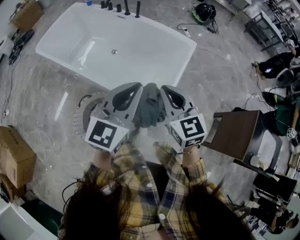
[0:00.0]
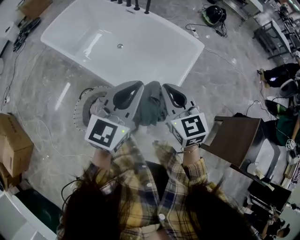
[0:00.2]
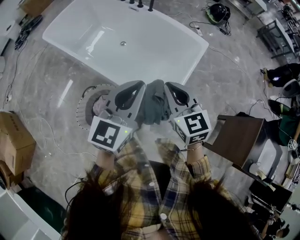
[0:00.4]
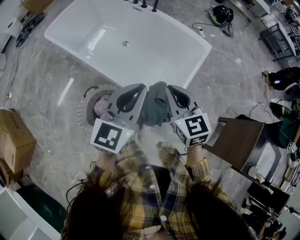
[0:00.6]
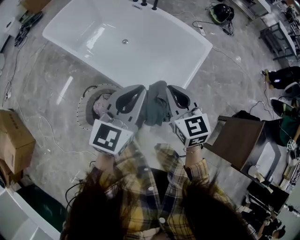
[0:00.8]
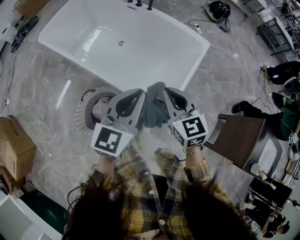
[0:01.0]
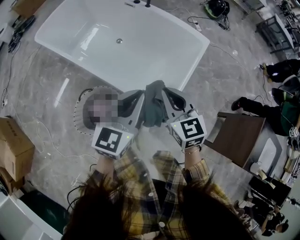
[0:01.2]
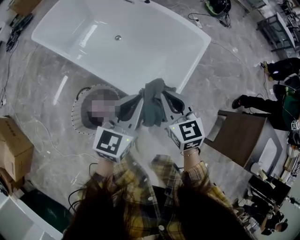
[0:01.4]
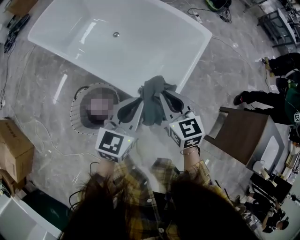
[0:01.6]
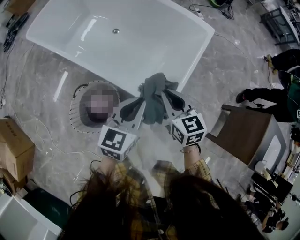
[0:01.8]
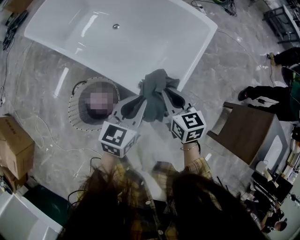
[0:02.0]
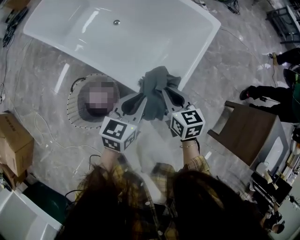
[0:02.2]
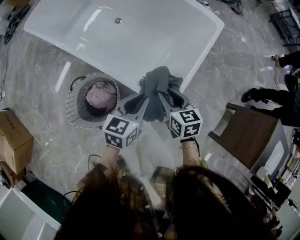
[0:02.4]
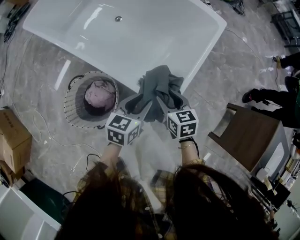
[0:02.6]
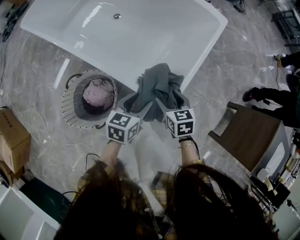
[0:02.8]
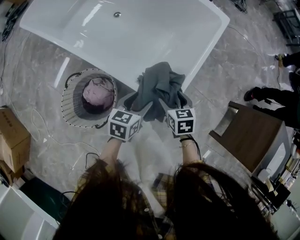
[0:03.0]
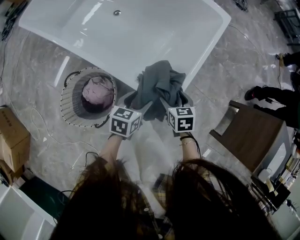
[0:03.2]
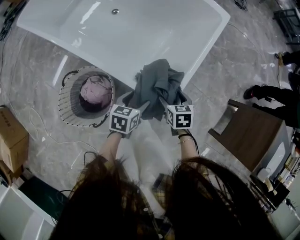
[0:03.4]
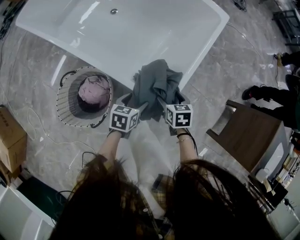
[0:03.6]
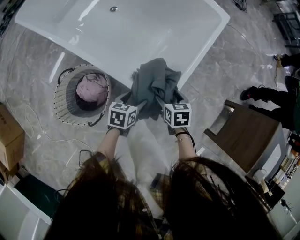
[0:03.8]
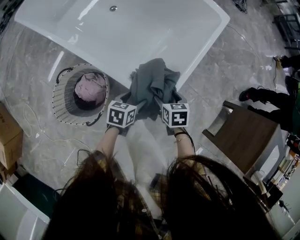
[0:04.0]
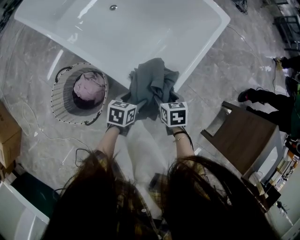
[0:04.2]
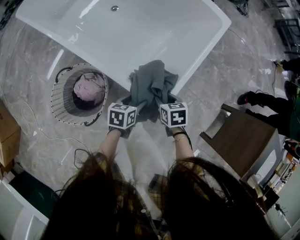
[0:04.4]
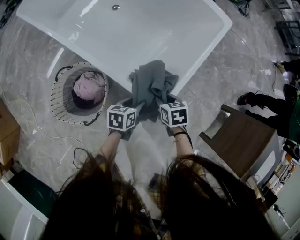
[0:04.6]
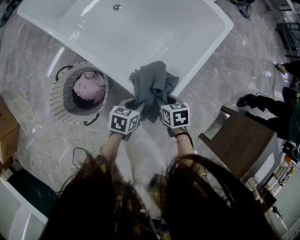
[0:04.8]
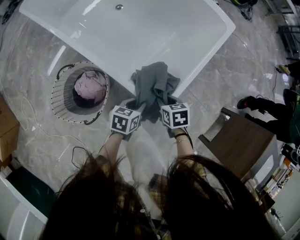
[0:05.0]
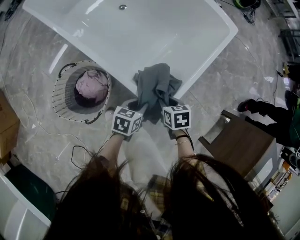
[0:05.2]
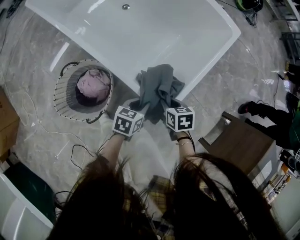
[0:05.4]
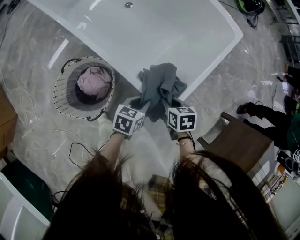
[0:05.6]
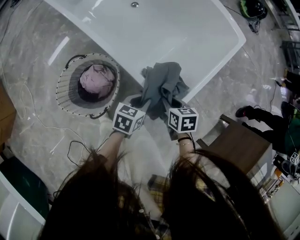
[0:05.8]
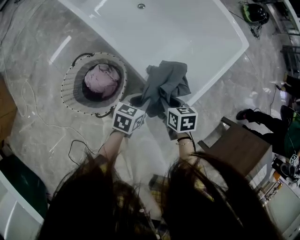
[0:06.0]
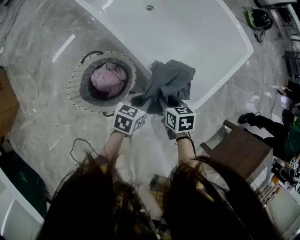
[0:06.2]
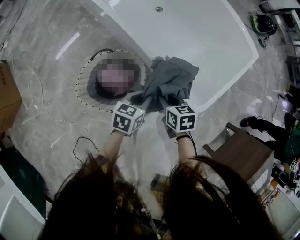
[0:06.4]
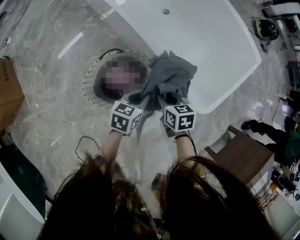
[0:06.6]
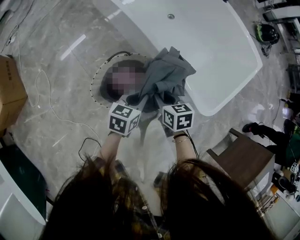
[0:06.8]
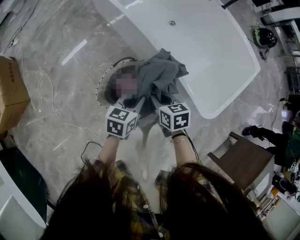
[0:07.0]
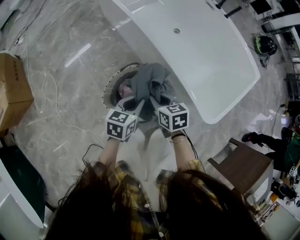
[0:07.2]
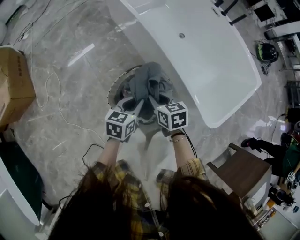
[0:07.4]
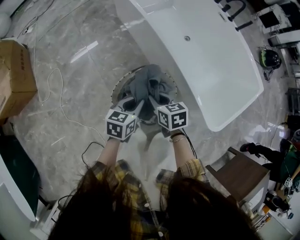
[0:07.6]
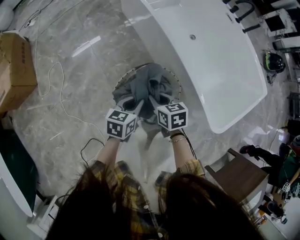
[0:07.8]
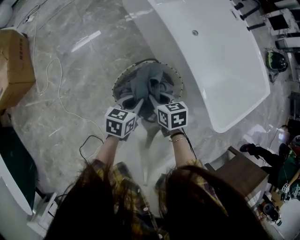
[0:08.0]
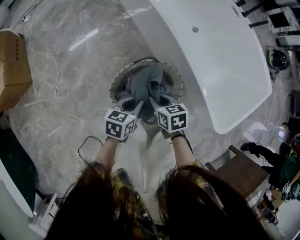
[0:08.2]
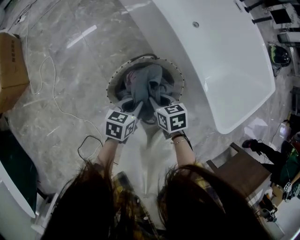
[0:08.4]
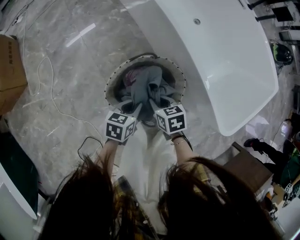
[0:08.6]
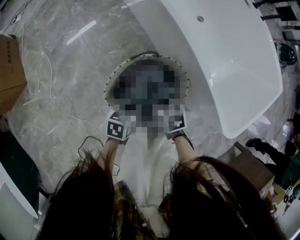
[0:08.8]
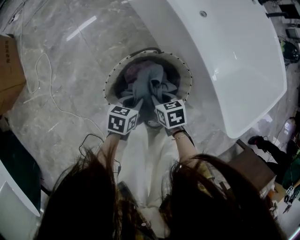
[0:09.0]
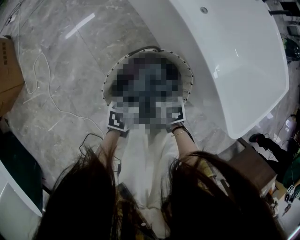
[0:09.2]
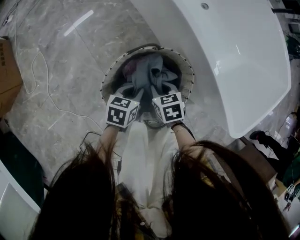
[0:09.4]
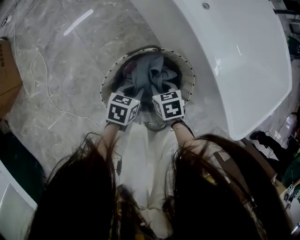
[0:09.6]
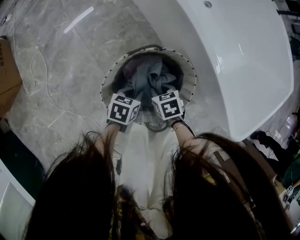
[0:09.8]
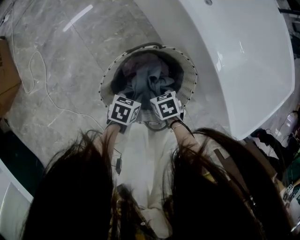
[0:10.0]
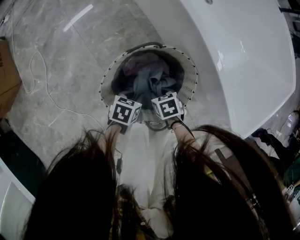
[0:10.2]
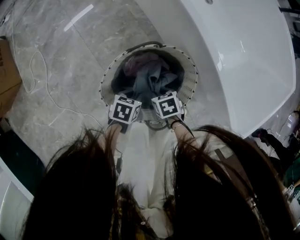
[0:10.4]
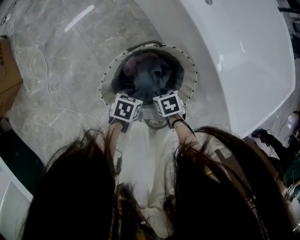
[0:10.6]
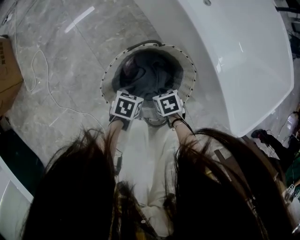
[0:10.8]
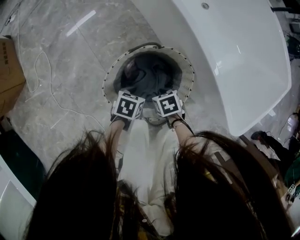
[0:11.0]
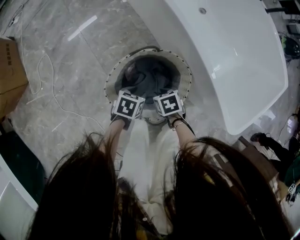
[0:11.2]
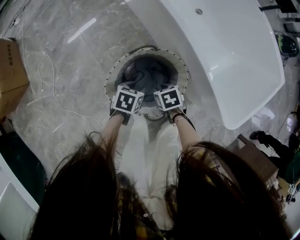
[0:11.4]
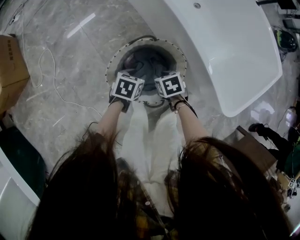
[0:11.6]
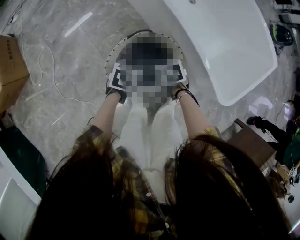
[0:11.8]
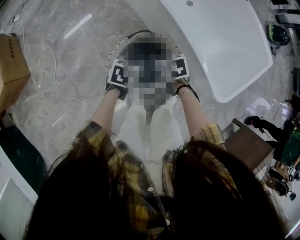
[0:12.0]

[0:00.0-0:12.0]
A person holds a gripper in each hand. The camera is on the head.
0:00.0 to 0:01.6: Both grippers move downward, roughly 15 cm.
0:01.6 to 0:03.0: Both grippers move downward, approximately 25 cm. The left gripper rotates roughly 30 degrees, and opens; the right gripper turns by approximately 30 degrees, and opens its fingers.
0:03.0 to 0:04.4: The left gripper heads downward, covering approximately 10 cm. Meanwhile the right gripper shifts approximately 5 cm downward, and closes.
0:04.4 to 0:06.0: The left gripper shifts some 10 cm to the left and upward, and closes up. The right gripper moves to the left, about 10 cm.
0:06.0 to 0:07.6: Both grippers move to the left, roughly 35 cm. The right gripper changes its angle by some 20 degrees. The left gripper swivels some 20 degrees.
0:07.6 to 0:09.0: The grippers both shift downward by some 20 cm.
0:09.0 to 0:10.4: Both grippers travel together downward, roughly 10 cm.
0:10.4 to 0:12.0: The grippers both shift upward by approximately 20 cm.

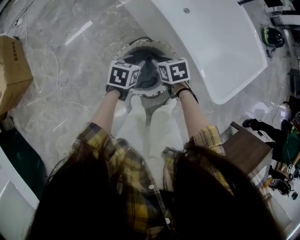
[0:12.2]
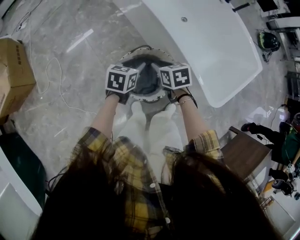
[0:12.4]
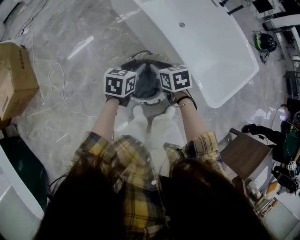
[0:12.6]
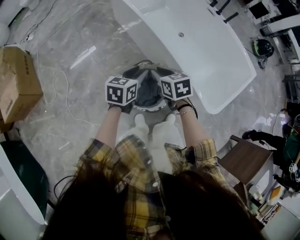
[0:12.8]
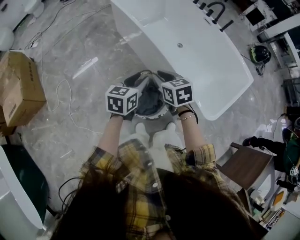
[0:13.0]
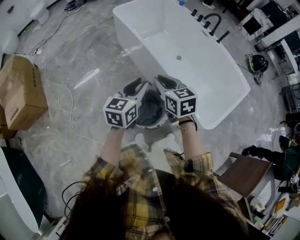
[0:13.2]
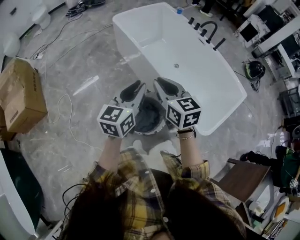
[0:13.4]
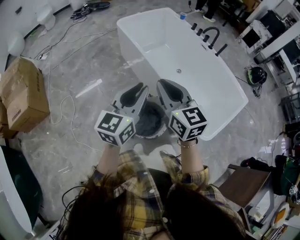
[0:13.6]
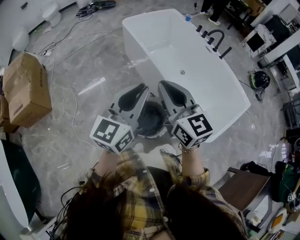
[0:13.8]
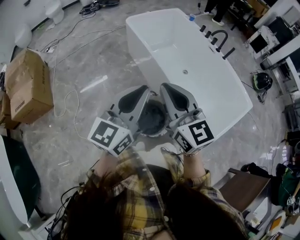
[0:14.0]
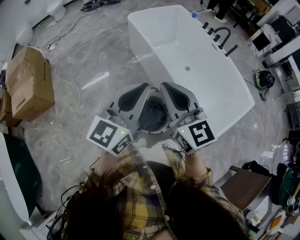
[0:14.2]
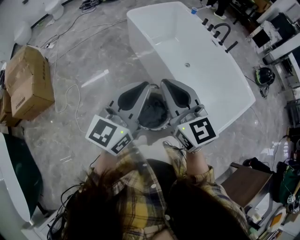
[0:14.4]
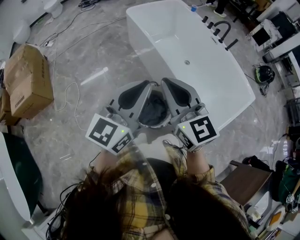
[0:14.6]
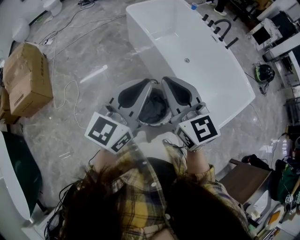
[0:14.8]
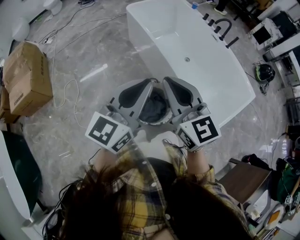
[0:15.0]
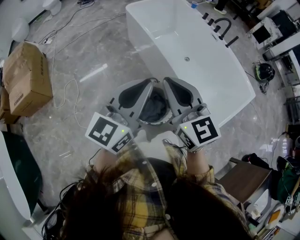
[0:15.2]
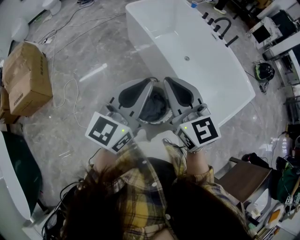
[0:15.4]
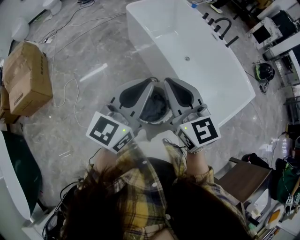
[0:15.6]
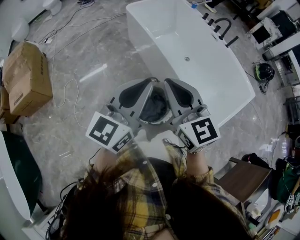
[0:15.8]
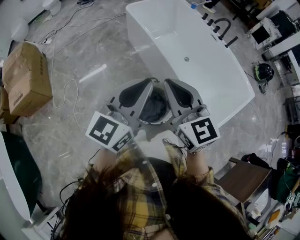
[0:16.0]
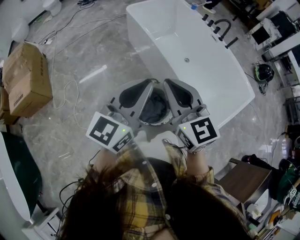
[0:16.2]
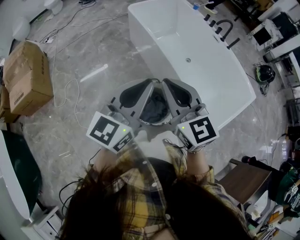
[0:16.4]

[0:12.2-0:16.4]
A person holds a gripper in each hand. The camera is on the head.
0:12.2 to 0:13.6: The two grippers go about 40 cm upward. The right gripper angles its fingers upward, by approximately 50 degrees. Meanwhile the left gripper tips its fingers upward by roughly 50 degrees.
0:13.6 to 0:15.0: The grippers both shift backward by about 5 cm.
0:15.0 to 0:16.4: The grippers move only a little.

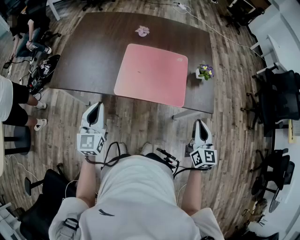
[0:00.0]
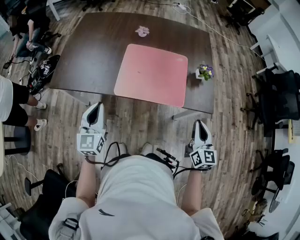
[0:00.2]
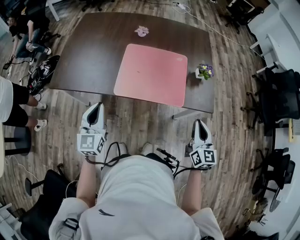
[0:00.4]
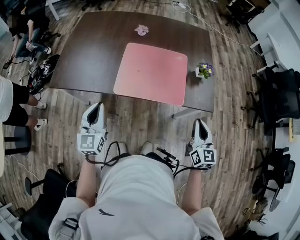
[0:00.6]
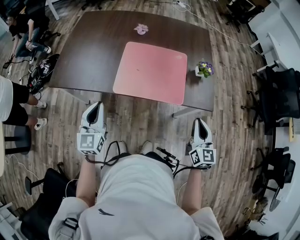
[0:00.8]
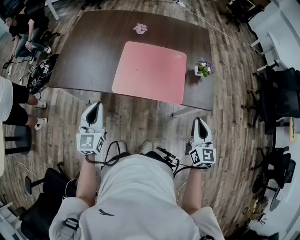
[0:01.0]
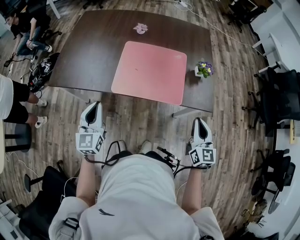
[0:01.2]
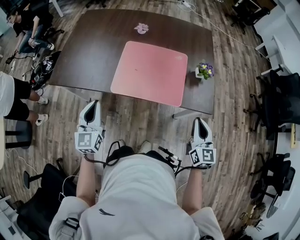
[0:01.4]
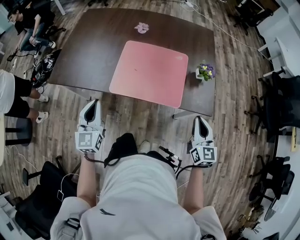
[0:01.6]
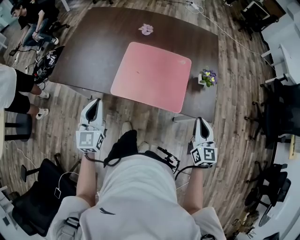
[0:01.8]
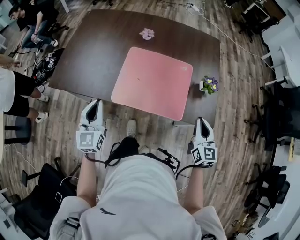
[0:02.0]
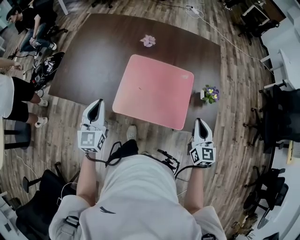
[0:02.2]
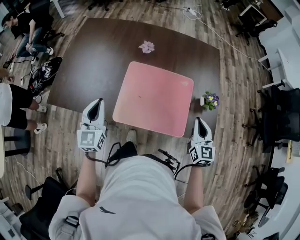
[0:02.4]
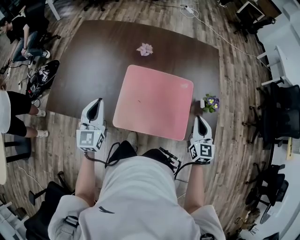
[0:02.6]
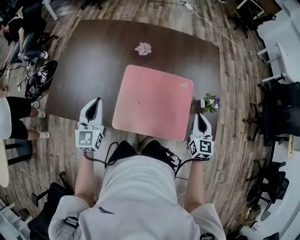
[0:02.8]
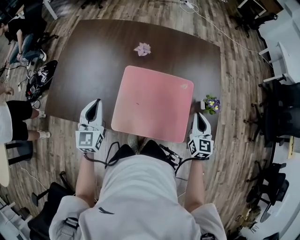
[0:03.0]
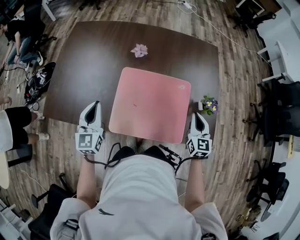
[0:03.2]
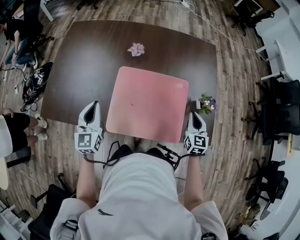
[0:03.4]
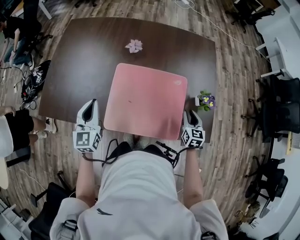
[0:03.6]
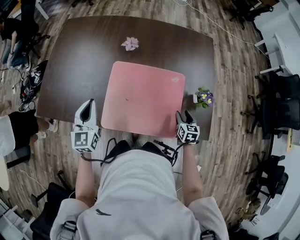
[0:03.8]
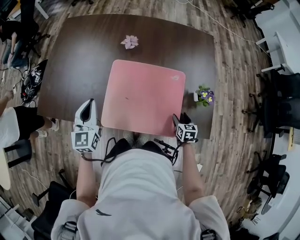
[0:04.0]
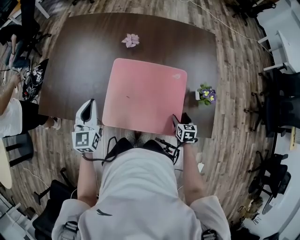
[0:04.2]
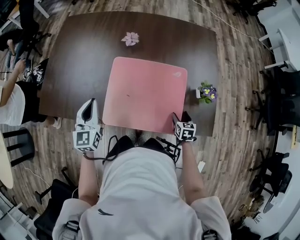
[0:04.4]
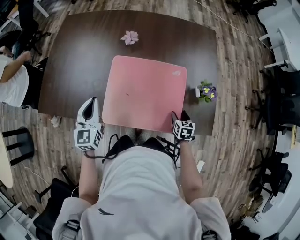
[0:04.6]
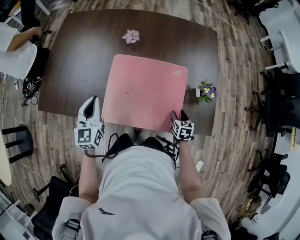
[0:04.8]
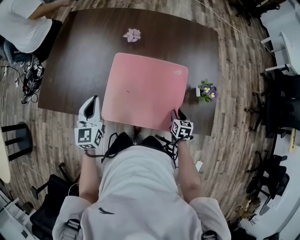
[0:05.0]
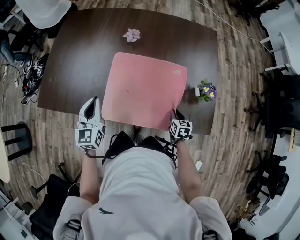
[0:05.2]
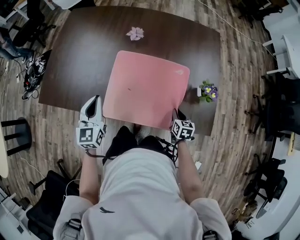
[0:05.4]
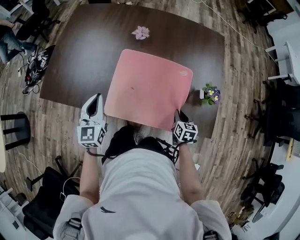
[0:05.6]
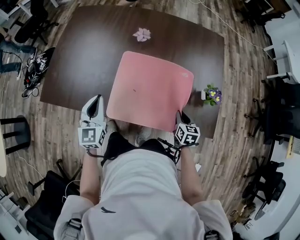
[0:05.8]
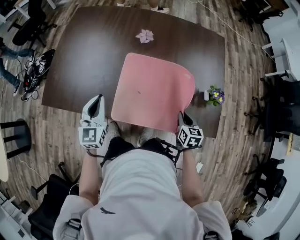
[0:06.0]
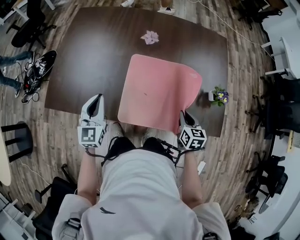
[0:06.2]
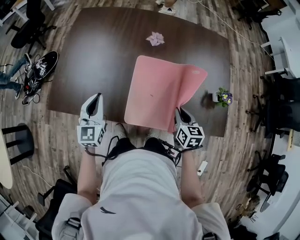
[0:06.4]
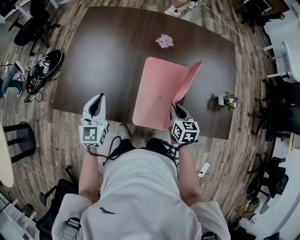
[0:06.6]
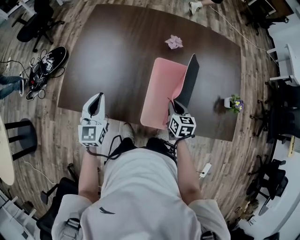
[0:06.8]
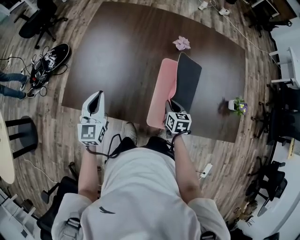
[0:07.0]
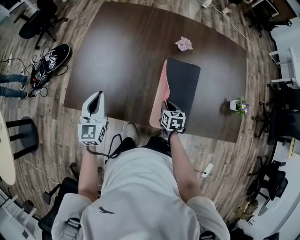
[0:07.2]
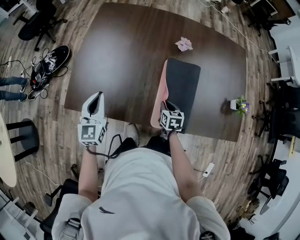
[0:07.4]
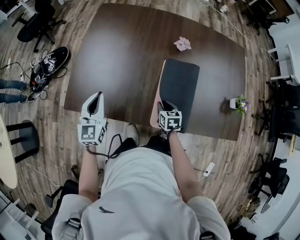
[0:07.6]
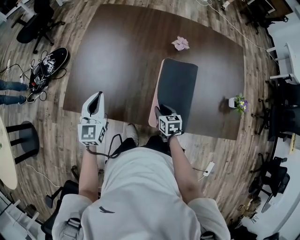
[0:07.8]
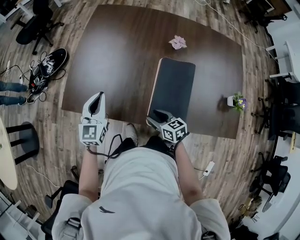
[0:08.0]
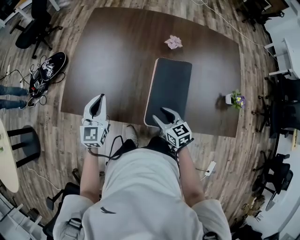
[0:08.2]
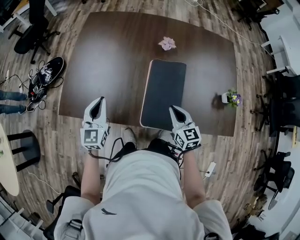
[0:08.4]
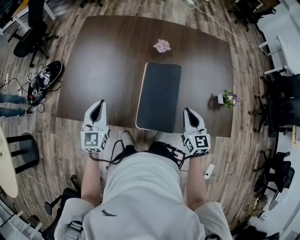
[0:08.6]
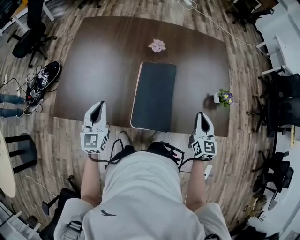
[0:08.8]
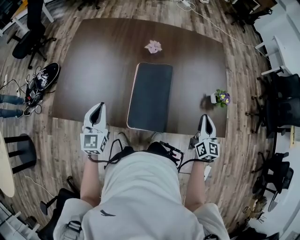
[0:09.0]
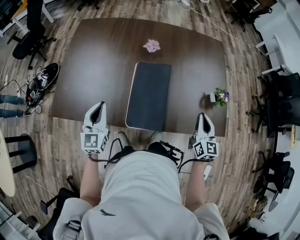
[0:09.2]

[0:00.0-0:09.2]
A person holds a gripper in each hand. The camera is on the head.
0:00.0 to 0:01.6: The right gripper moves about 5 cm.
0:01.6 to 0:03.0: The grippers both shift forward by some 25 cm.
0:03.0 to 0:04.6: The left gripper changes place by roughly 5 cm. The right gripper goes some 20 cm downward, points its fingers about 40 degrees further downward, and opens.
0:04.6 to 0:06.2: The left gripper goes some 10 cm to the left, while the right gripper is displaced upward and to the left by about 15 cm, and closes.
0:06.2 to 0:07.6: The left gripper shifts about 20 cm to the left. Meanwhile the right gripper moves to the left and downward, some 30 cm.
0:07.6 to 0:09.2: The right gripper ends up some 35 cm from where it was, tips its fingers upward by approximately 40 degrees, and closes its fingers. Meanwhile the left gripper moves roughly 15 cm.
